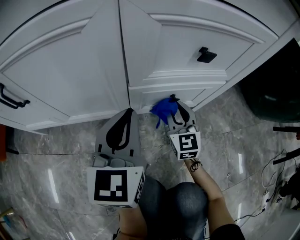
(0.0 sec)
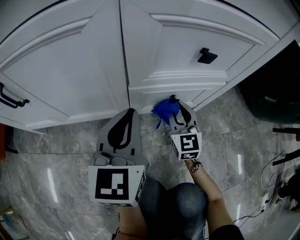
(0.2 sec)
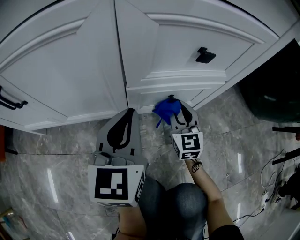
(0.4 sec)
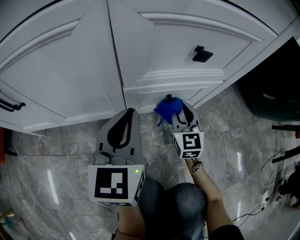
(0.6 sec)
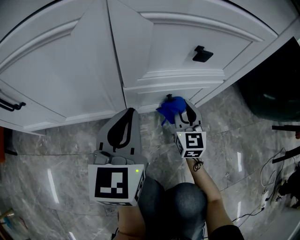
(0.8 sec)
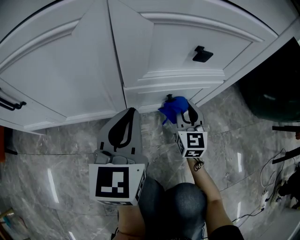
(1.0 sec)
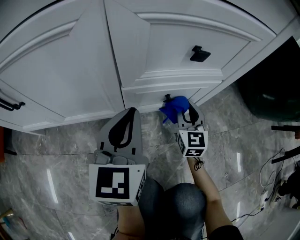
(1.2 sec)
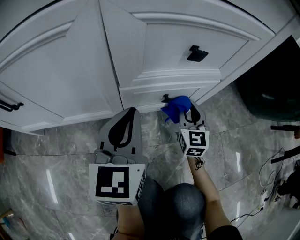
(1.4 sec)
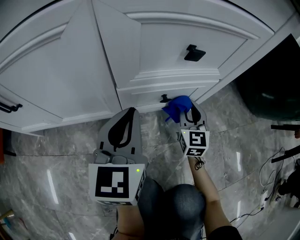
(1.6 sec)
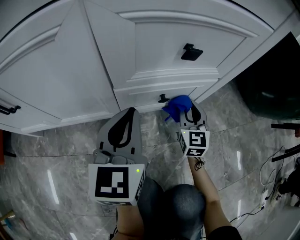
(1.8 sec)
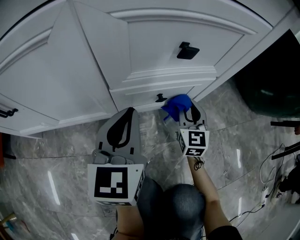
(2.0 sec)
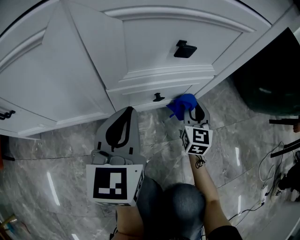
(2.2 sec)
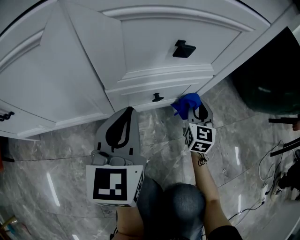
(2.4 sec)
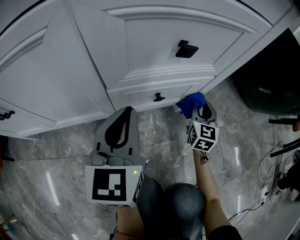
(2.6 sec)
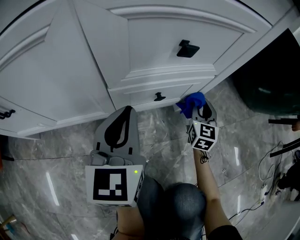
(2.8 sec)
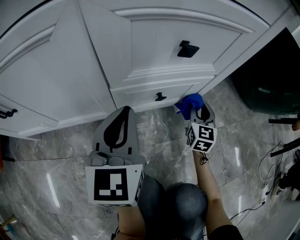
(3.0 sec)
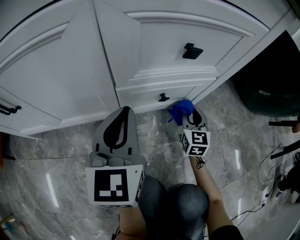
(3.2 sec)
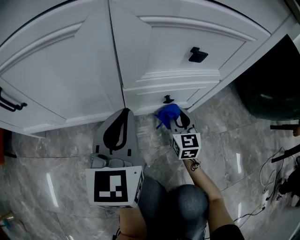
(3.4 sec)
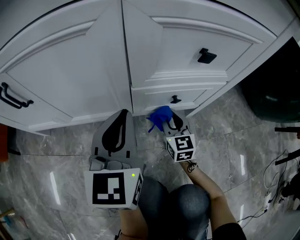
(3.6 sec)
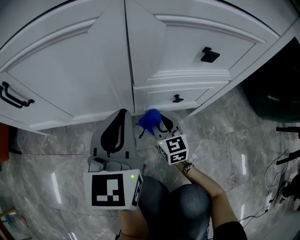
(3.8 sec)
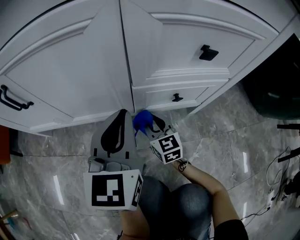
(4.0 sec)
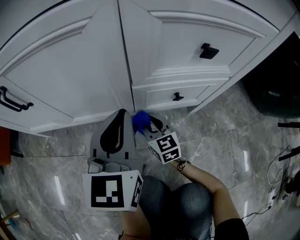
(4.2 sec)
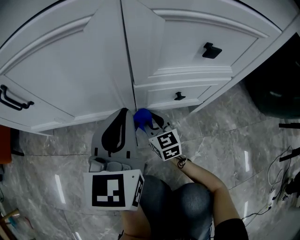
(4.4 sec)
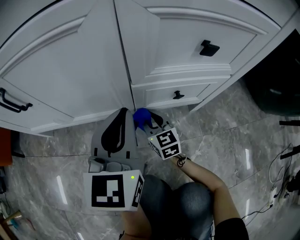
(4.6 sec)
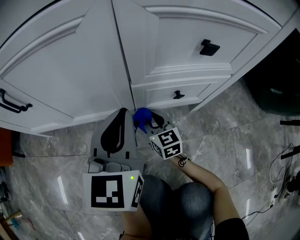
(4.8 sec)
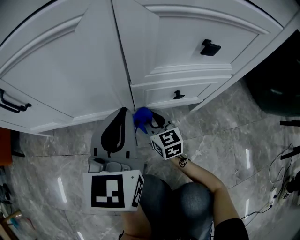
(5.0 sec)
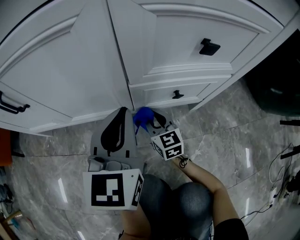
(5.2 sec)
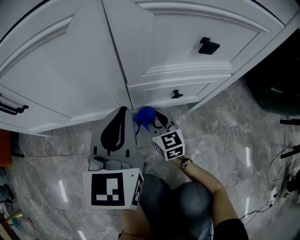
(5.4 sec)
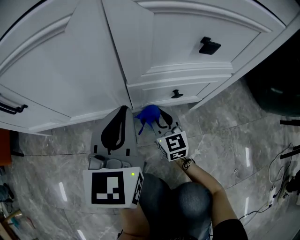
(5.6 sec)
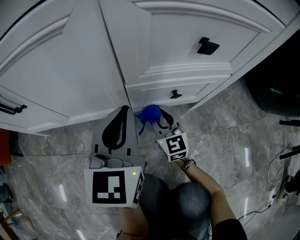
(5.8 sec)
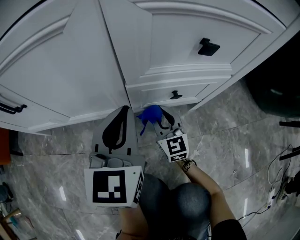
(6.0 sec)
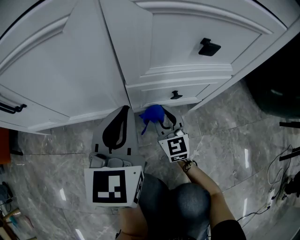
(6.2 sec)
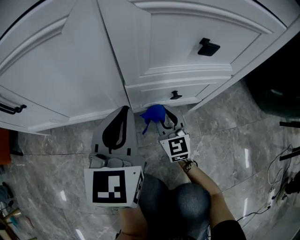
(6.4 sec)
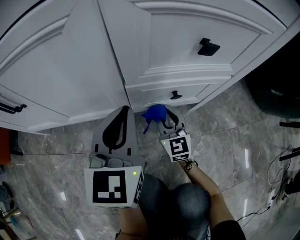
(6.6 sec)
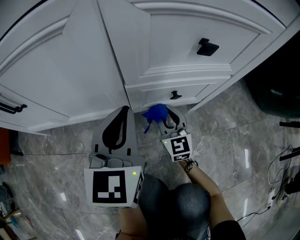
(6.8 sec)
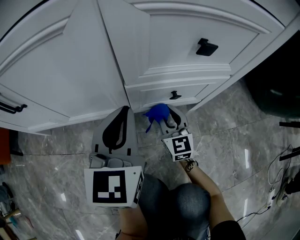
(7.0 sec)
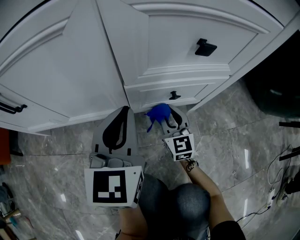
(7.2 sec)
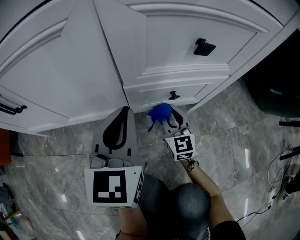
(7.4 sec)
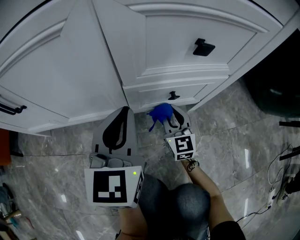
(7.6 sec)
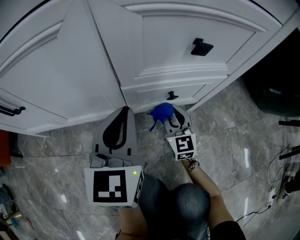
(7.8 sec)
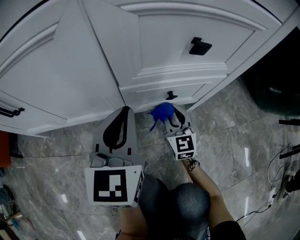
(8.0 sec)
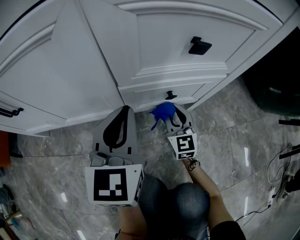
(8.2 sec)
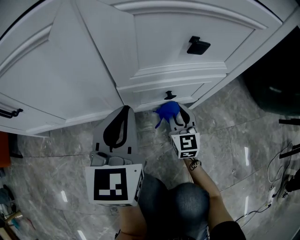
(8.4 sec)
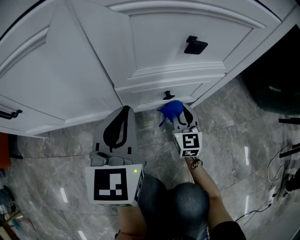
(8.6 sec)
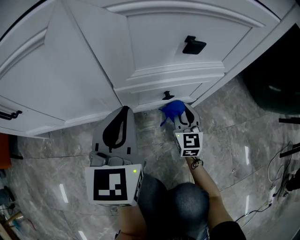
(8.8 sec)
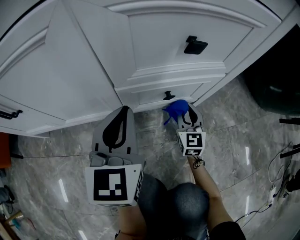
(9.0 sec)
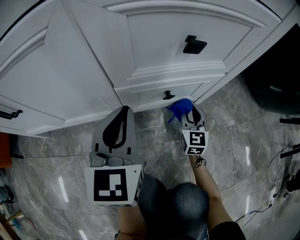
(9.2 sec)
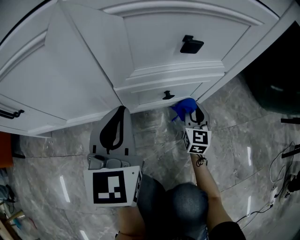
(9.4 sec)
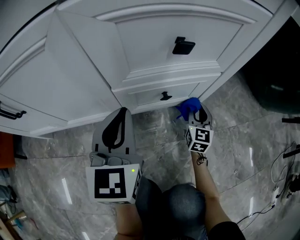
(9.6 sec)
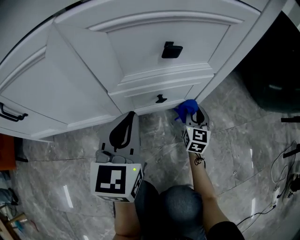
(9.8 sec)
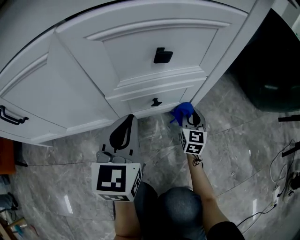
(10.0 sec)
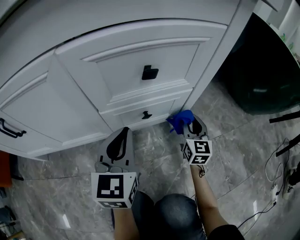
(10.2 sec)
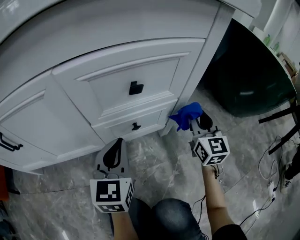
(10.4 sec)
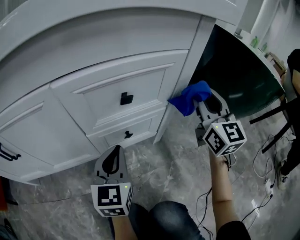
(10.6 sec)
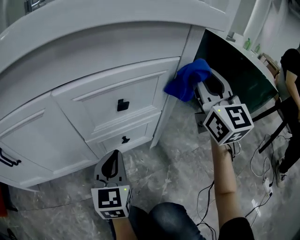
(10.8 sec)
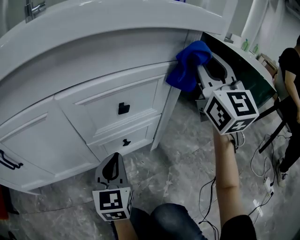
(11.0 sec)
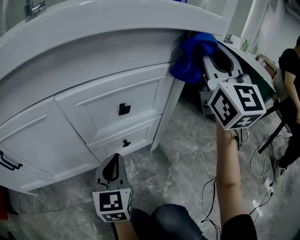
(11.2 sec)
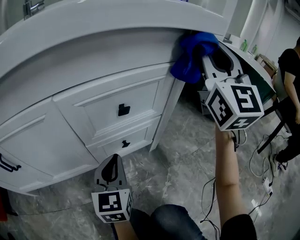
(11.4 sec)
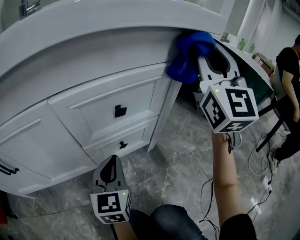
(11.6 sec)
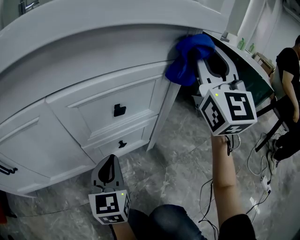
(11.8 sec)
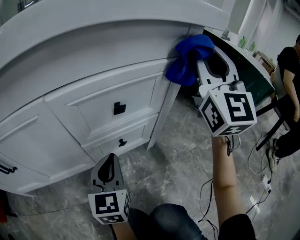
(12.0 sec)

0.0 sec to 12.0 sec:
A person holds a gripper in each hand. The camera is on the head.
0.0 sec to 1.6 sec: The right gripper is displaced to the right by about 10 cm.
1.6 sec to 3.0 sec: The right gripper moves to the right, approximately 10 cm.
3.0 sec to 4.4 sec: The left gripper travels to the left by roughly 5 cm, while the right gripper goes approximately 30 cm to the left, and changes its angle by approximately 40 degrees.
4.4 sec to 6.0 sec: The right gripper travels to the right by roughly 5 cm.
6.0 sec to 7.6 sec: The grippers stay close to where they were, moving slightly.
7.6 sec to 9.0 sec: The right gripper travels to the right by approximately 10 cm.
9.0 sec to 10.4 sec: The left gripper heads to the right, covering roughly 5 cm. The right gripper is displaced upward and to the right by some 25 cm.
10.4 sec to 12.0 sec: The right gripper is displaced upward by approximately 30 cm, and rotates about 30 degrees.

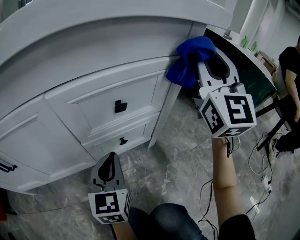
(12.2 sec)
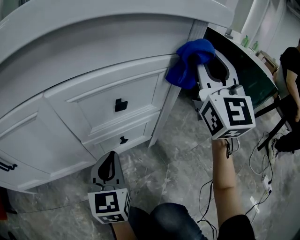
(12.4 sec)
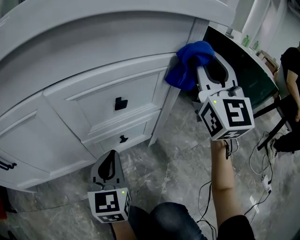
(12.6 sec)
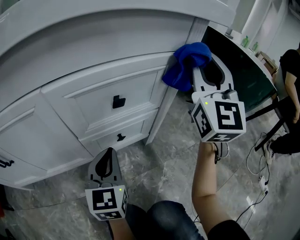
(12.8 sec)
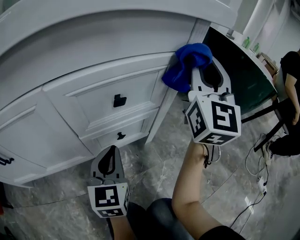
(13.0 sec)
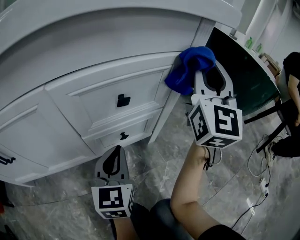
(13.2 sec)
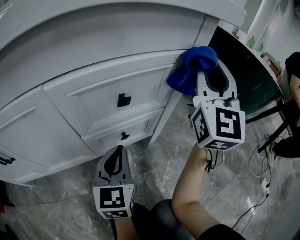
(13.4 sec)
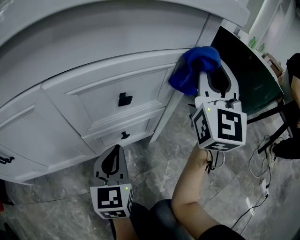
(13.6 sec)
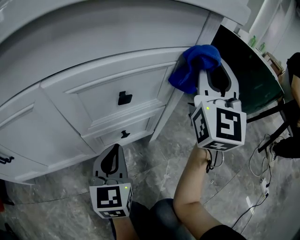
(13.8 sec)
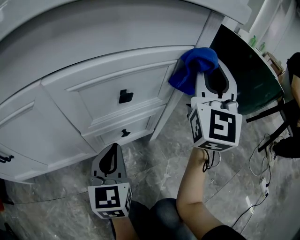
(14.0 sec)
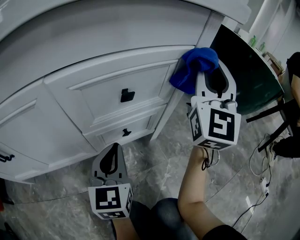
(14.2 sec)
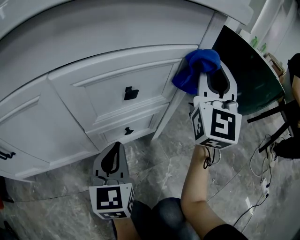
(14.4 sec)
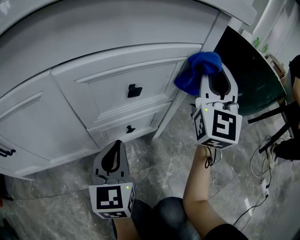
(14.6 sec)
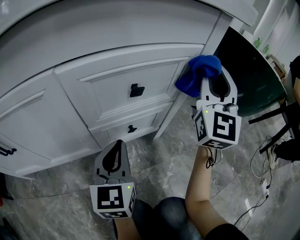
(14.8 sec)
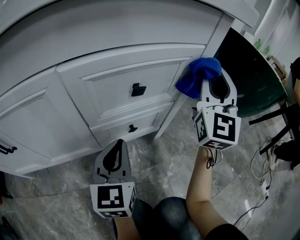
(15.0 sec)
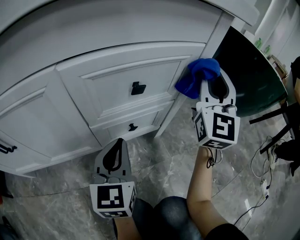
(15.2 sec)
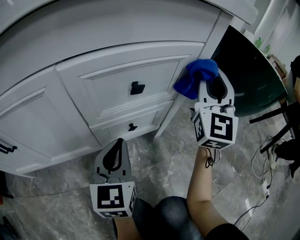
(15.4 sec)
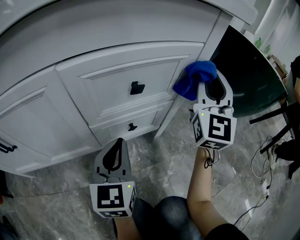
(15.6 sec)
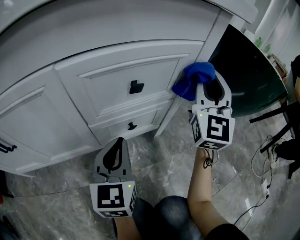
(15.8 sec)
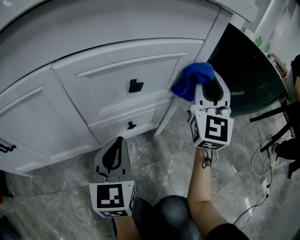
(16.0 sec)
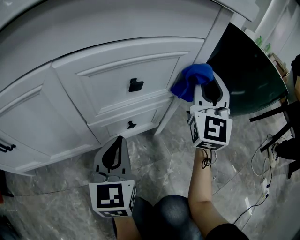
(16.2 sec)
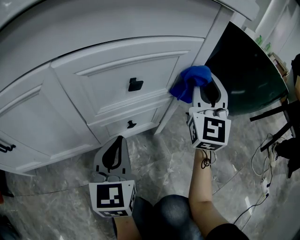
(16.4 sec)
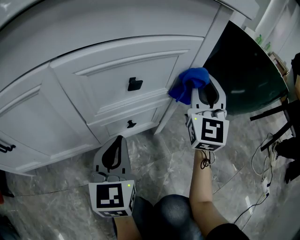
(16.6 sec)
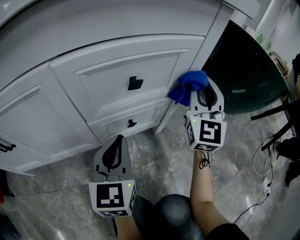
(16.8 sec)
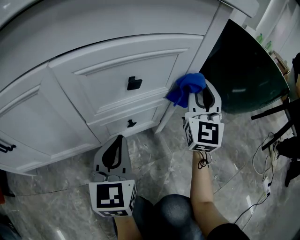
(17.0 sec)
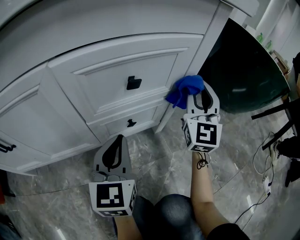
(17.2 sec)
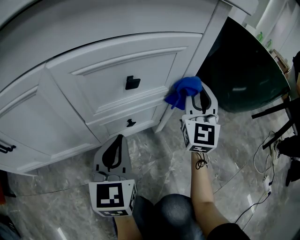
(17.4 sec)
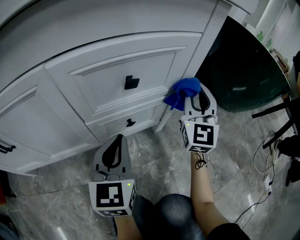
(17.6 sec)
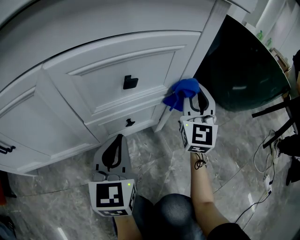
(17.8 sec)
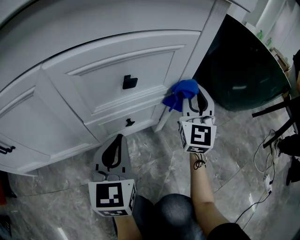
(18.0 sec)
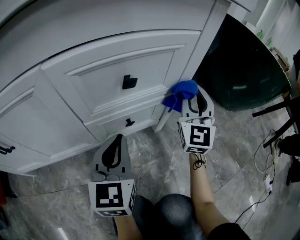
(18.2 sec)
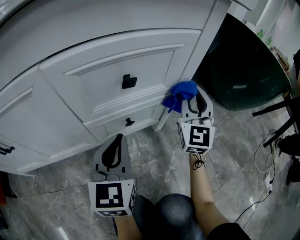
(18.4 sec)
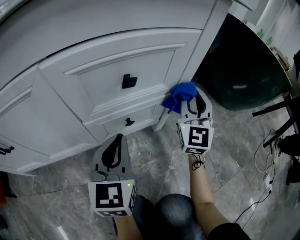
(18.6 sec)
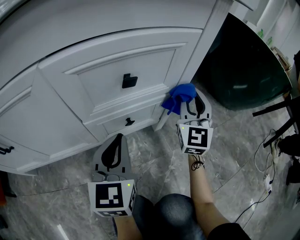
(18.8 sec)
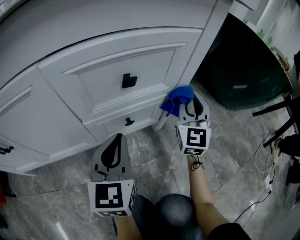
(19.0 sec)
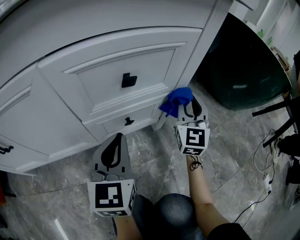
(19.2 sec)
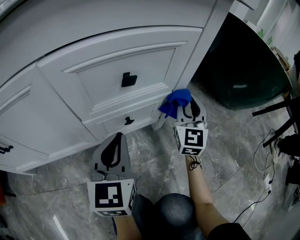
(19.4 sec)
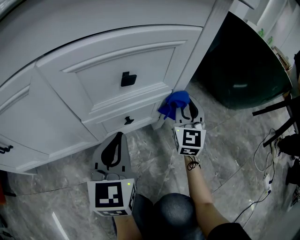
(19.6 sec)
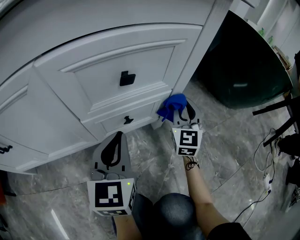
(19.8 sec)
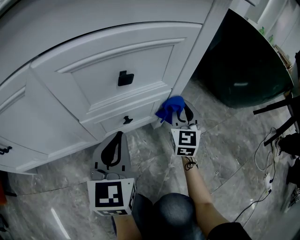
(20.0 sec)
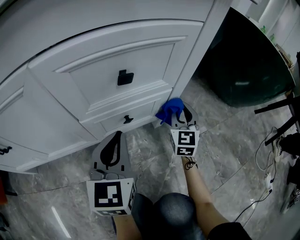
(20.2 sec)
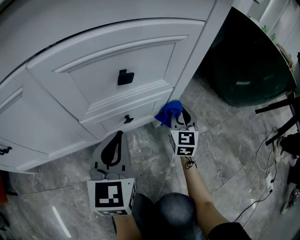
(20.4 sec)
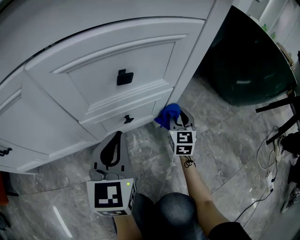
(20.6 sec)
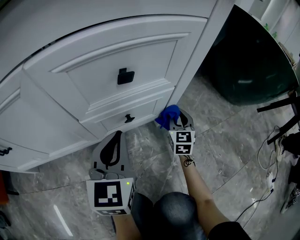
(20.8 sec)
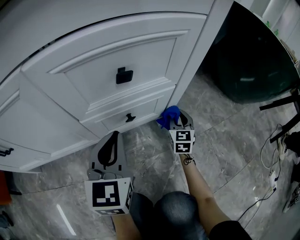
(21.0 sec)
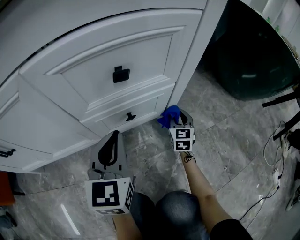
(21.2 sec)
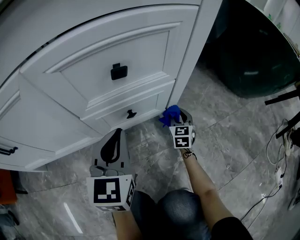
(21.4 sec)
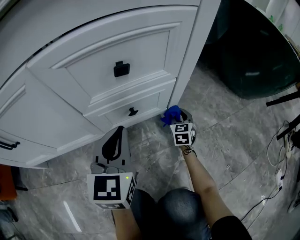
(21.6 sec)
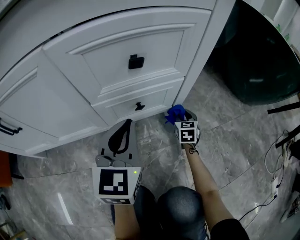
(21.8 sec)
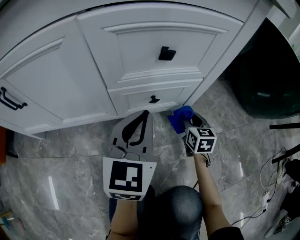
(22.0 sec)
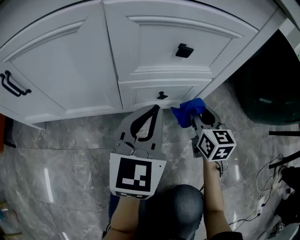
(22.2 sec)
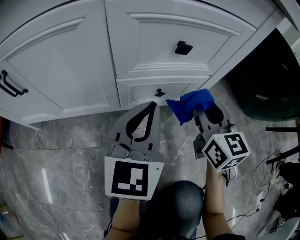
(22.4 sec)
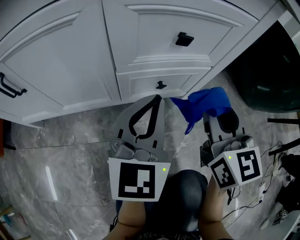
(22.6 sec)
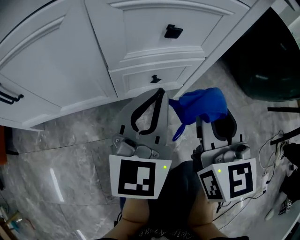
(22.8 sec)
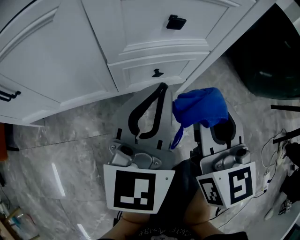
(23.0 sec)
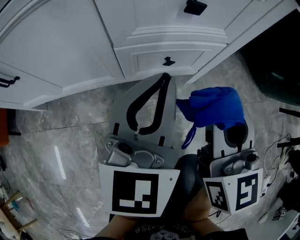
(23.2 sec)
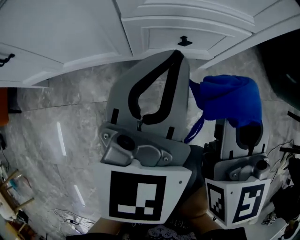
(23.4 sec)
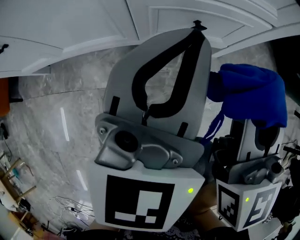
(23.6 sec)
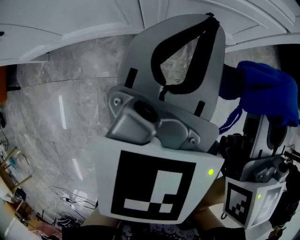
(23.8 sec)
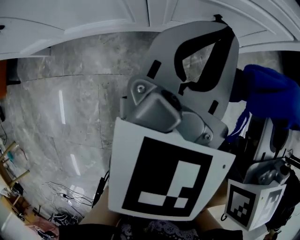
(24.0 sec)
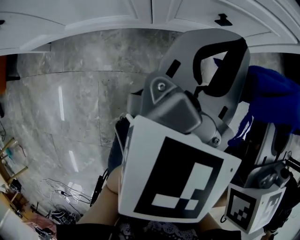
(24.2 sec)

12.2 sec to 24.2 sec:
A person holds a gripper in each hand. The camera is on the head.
12.2 sec to 13.8 sec: The grippers stay close to where they were, moving slightly.
13.8 sec to 15.2 sec: The grippers move only a little.
15.2 sec to 16.6 sec: The right gripper travels downward by some 5 cm.
16.6 sec to 18.2 sec: The right gripper travels downward by about 5 cm.
18.2 sec to 19.8 sec: The right gripper shifts some 10 cm downward.
19.8 sec to 21.2 sec: The right gripper is displaced downward by approximately 20 cm, and turns by about 20 degrees.
21.2 sec to 22.6 sec: The left gripper is displaced upward by some 5 cm; the right gripper moves upward and backward, some 35 cm, and swivels approximately 20 degrees.
22.6 sec to 24.2 sec: The right gripper ends up about 5 cm from where it was. The left gripper moves downward, roughly 5 cm.
